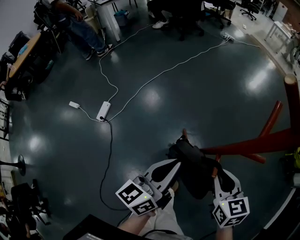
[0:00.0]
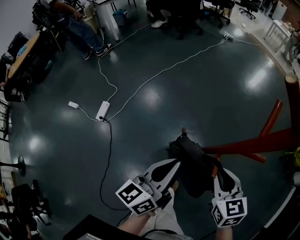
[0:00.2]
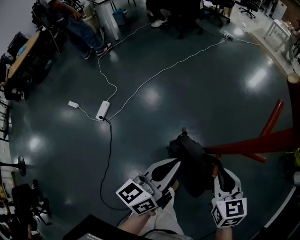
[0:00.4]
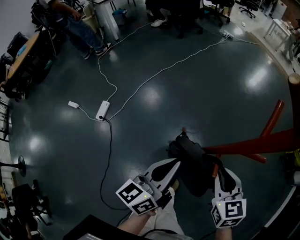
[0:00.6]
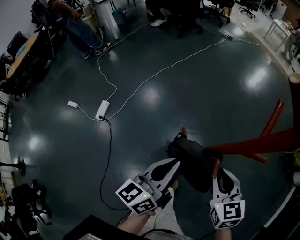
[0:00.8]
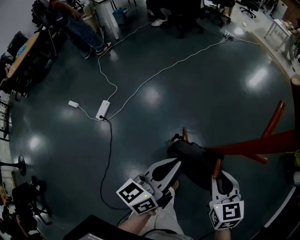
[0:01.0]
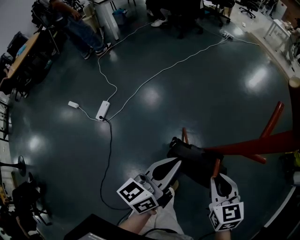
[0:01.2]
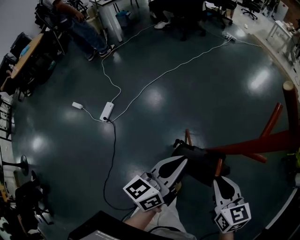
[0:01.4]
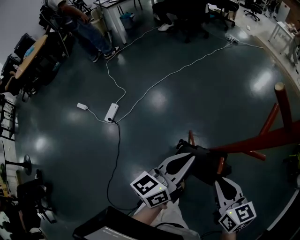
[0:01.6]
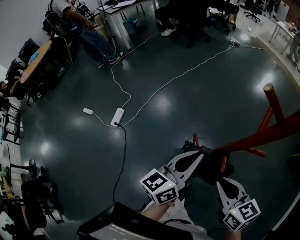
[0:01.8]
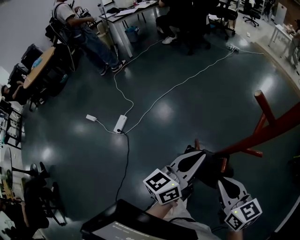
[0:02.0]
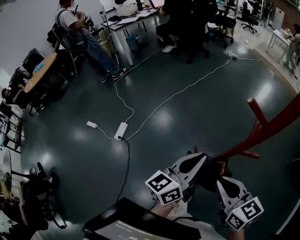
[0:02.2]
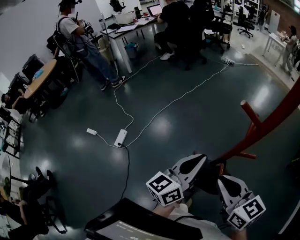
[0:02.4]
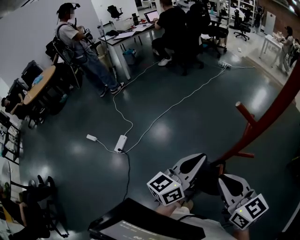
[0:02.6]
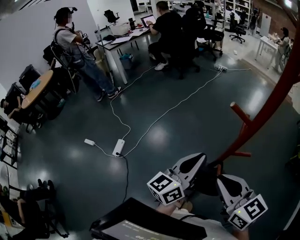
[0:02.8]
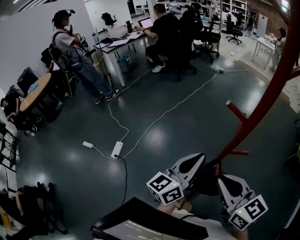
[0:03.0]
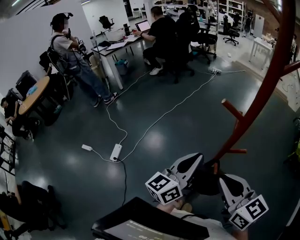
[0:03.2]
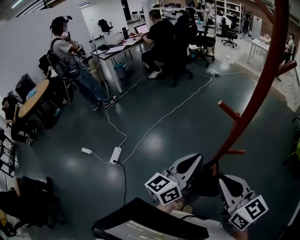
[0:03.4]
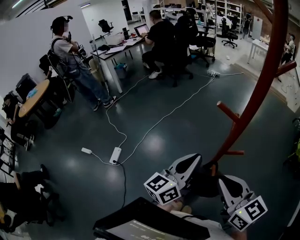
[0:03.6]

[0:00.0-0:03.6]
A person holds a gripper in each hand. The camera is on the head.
0:00.0 to 0:01.8: The grippers both shift upward by some 5 cm.
0:01.8 to 0:03.6: Both grippers move upward, some 15 cm. The right gripper changes its angle by some 20 degrees.

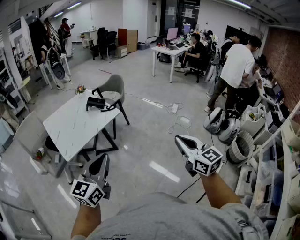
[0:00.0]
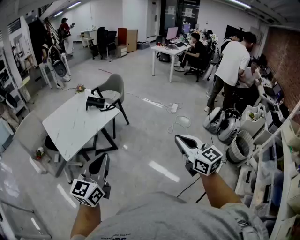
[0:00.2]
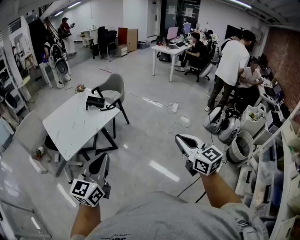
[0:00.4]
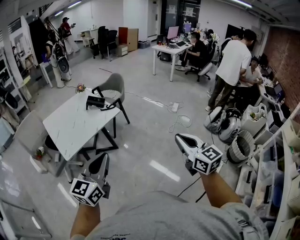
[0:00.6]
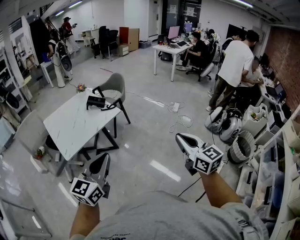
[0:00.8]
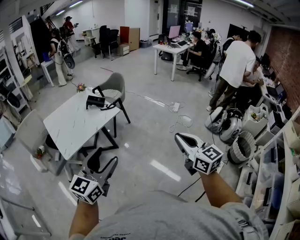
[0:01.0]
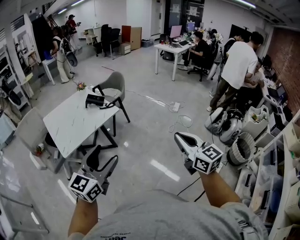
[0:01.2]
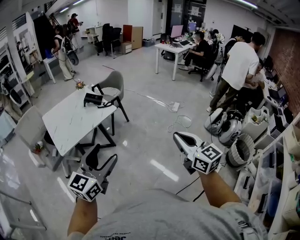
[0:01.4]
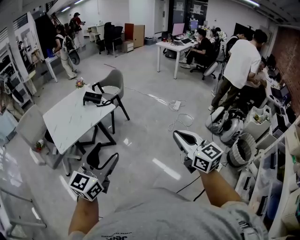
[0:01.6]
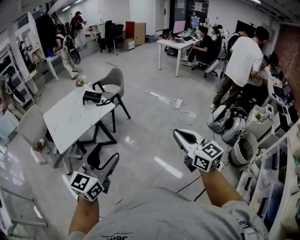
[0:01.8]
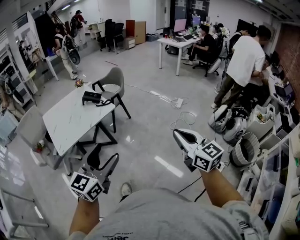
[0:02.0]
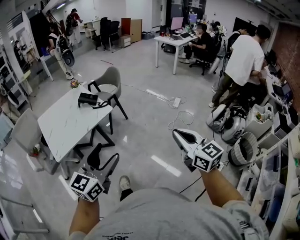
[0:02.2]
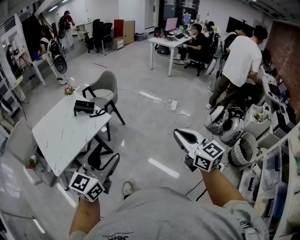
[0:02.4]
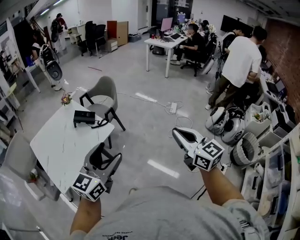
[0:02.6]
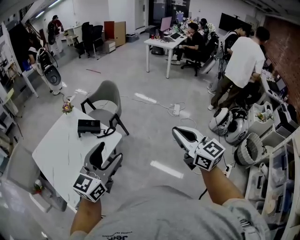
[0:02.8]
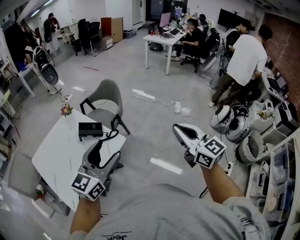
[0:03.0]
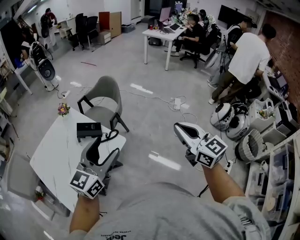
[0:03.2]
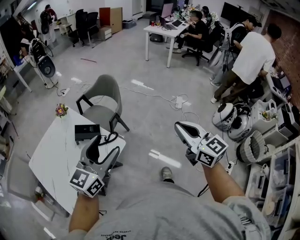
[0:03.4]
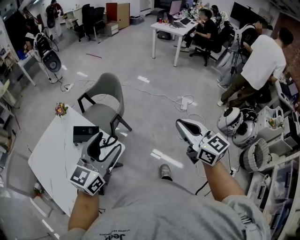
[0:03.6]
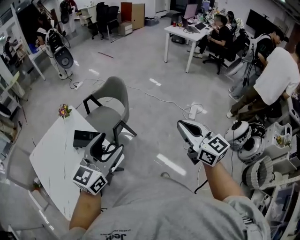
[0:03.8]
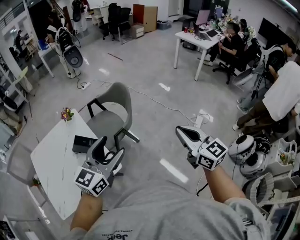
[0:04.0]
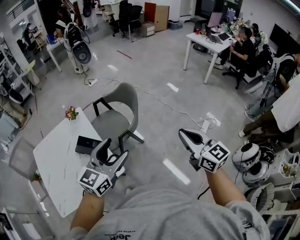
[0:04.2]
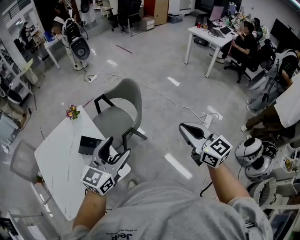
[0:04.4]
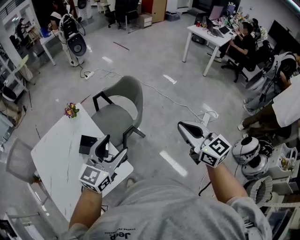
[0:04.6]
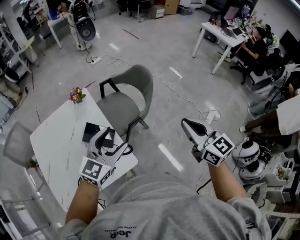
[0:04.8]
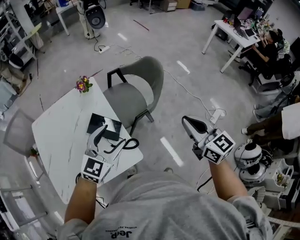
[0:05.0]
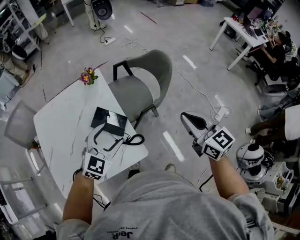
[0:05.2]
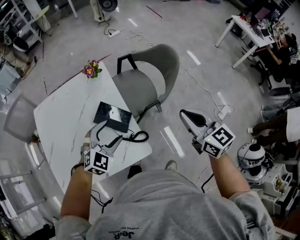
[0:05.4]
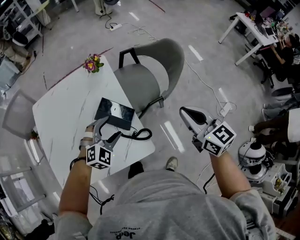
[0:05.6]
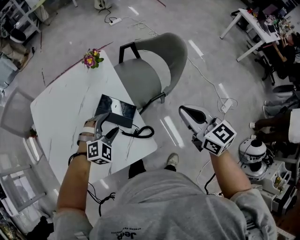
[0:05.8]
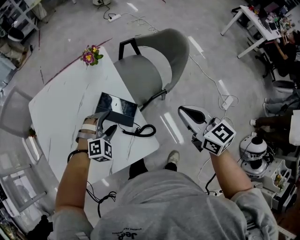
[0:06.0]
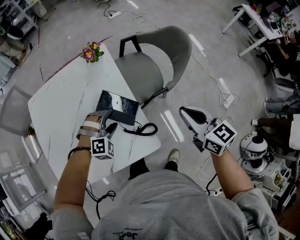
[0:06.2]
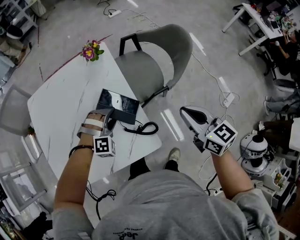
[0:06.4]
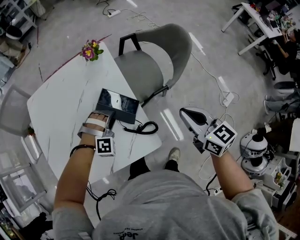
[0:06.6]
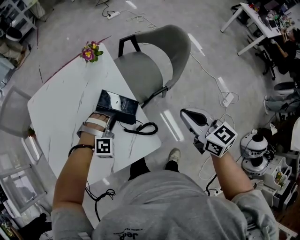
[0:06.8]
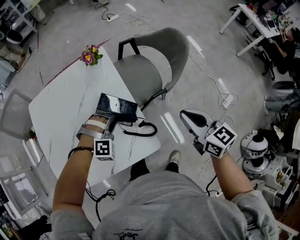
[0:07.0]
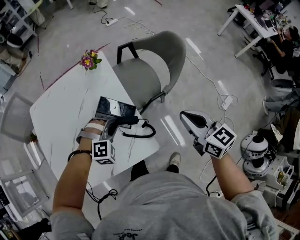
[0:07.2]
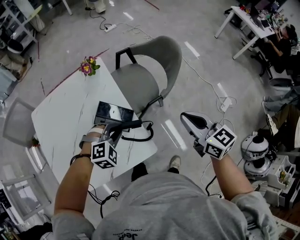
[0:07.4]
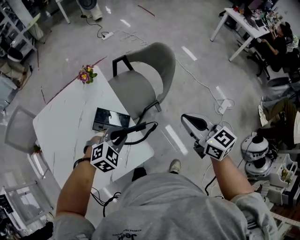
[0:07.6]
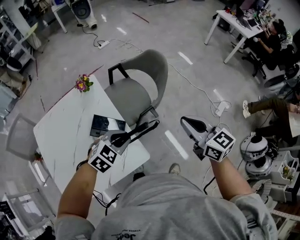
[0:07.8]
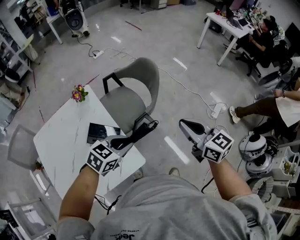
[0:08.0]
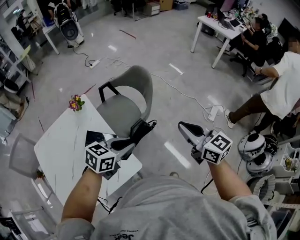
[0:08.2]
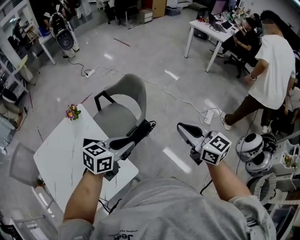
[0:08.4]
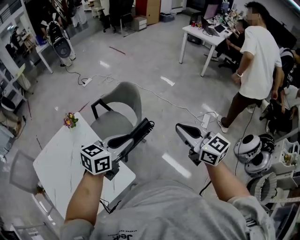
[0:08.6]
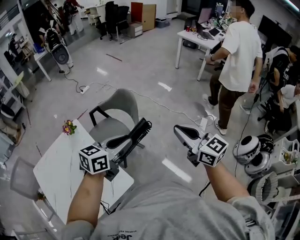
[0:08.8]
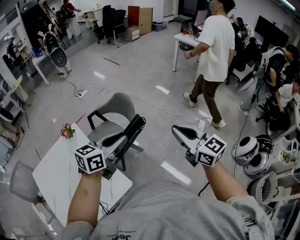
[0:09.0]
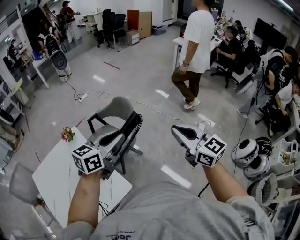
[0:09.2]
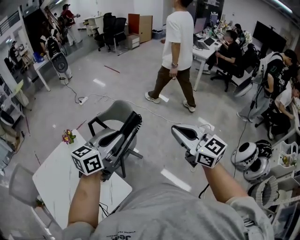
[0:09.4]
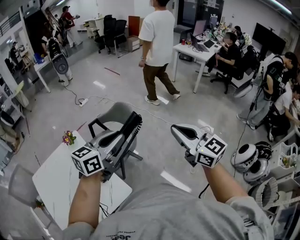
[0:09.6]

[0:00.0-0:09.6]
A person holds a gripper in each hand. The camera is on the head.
0:00.0 to 0:01.6: The two grippers go about 10 cm to the right. The left gripper opens its fingers.
0:01.6 to 0:03.2: Both grippers are carried forward and to the left, some 50 cm.
0:03.2 to 0:04.8: The left gripper goes about 30 cm forward and downward, and turns by roughly 20 degrees. The right gripper travels forward by roughly 35 cm, and swivels approximately 20 degrees.
0:04.8 to 0:06.4: The right gripper goes roughly 25 cm downward, to the left and forward, while the left gripper goes some 30 cm downward and to the left, and angles its fingers downward, by some 40 degrees.
0:06.4 to 0:08.0: The right gripper shifts by about 15 cm. Meanwhile the left gripper shifts by about 25 cm, rotates around the line of its fingers by approximately 60 degrees, counterclockwise from behind, and closes up.
0:08.0 to 0:09.6: The right gripper shifts some 20 cm upward and to the right. Meanwhile the left gripper heads upward, forward and to the right, covering about 25 cm, and points its fingers about 30 degrees further upward.

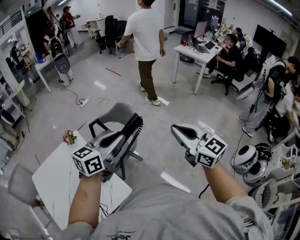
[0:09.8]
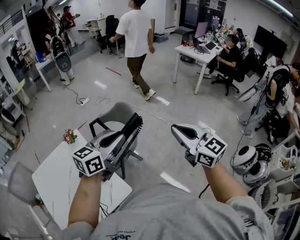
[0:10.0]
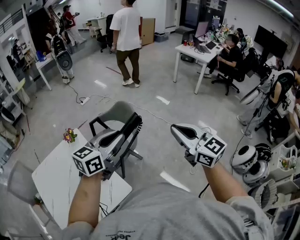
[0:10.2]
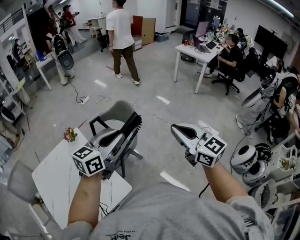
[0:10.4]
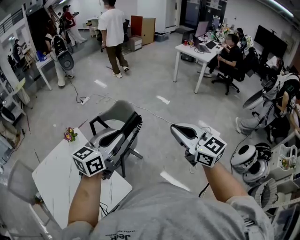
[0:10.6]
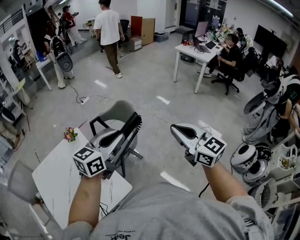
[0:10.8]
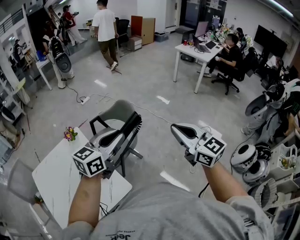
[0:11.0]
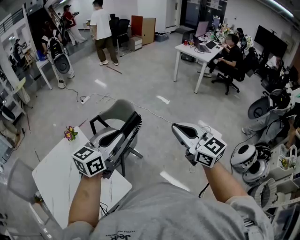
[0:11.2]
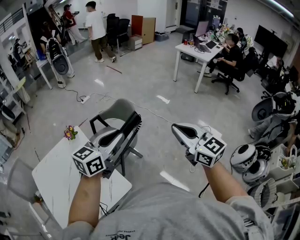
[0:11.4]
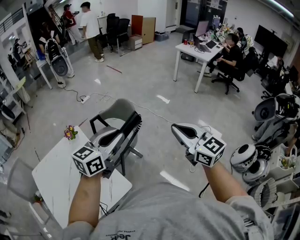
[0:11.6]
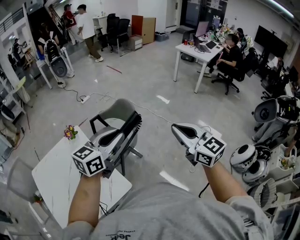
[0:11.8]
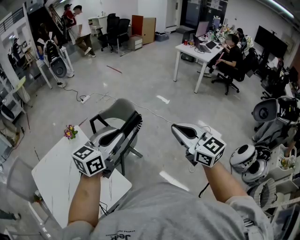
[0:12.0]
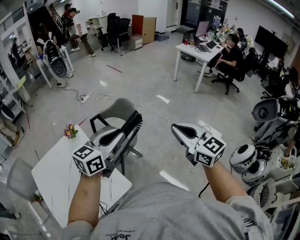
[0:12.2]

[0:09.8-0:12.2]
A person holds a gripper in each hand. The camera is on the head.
0:09.8 to 0:11.0: The grippers stay close to where they were, moving slightly.
0:11.0 to 0:12.2: Both grippers stay put.

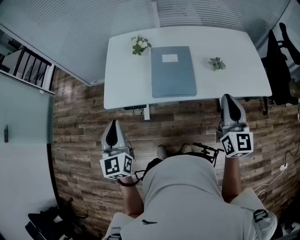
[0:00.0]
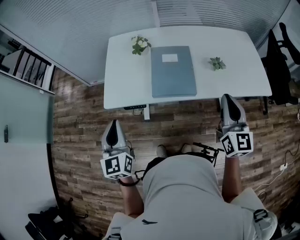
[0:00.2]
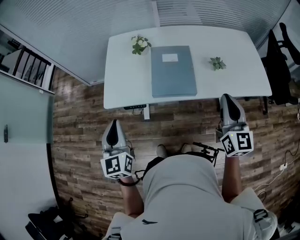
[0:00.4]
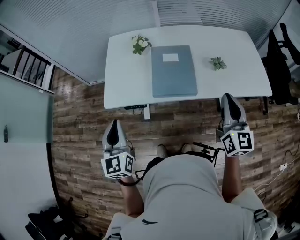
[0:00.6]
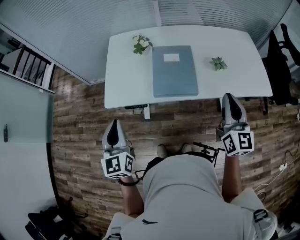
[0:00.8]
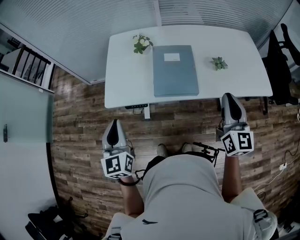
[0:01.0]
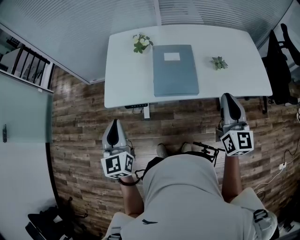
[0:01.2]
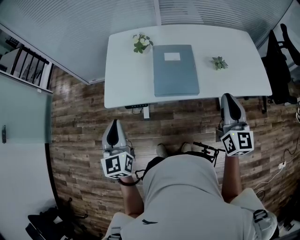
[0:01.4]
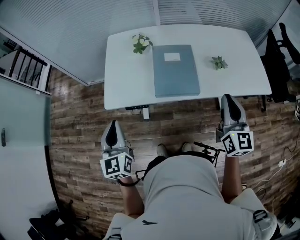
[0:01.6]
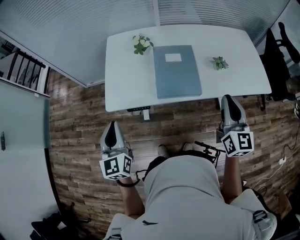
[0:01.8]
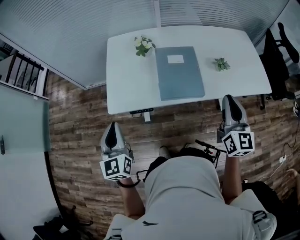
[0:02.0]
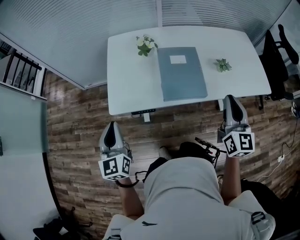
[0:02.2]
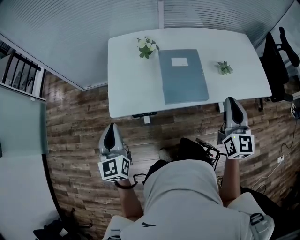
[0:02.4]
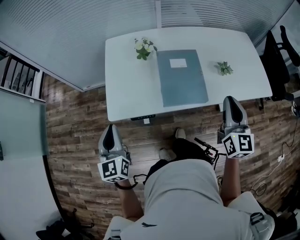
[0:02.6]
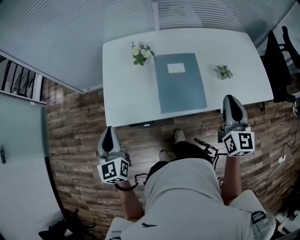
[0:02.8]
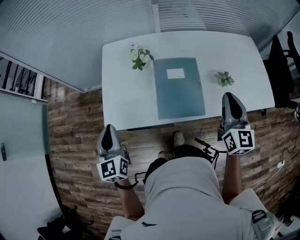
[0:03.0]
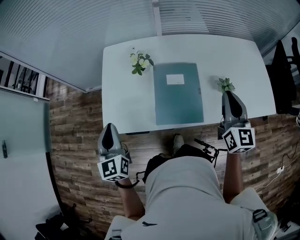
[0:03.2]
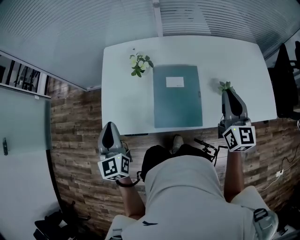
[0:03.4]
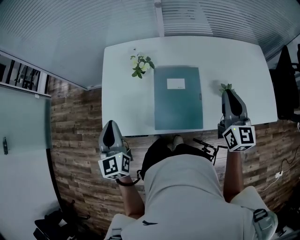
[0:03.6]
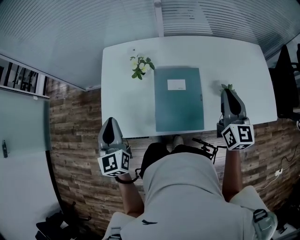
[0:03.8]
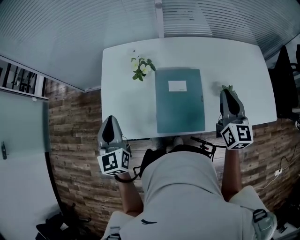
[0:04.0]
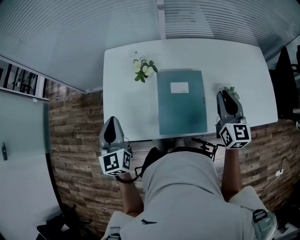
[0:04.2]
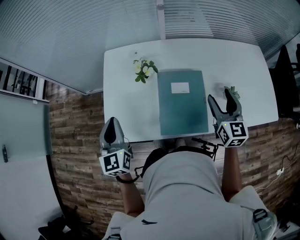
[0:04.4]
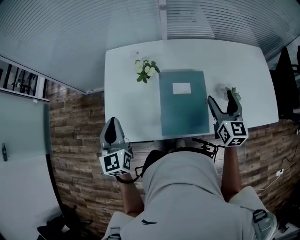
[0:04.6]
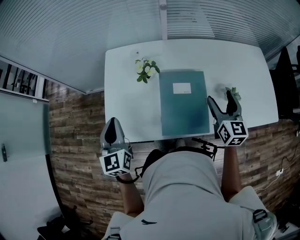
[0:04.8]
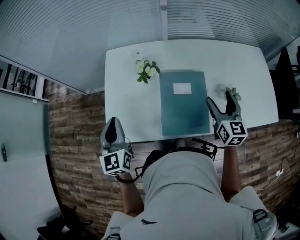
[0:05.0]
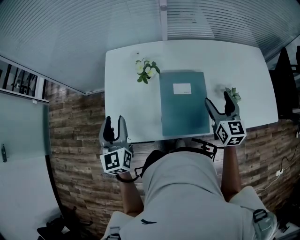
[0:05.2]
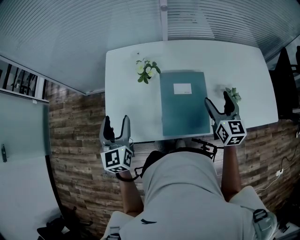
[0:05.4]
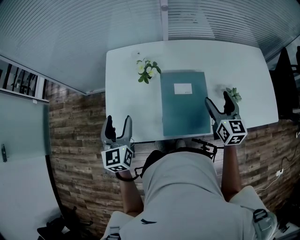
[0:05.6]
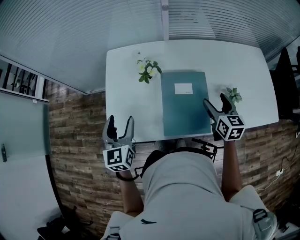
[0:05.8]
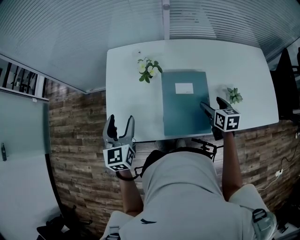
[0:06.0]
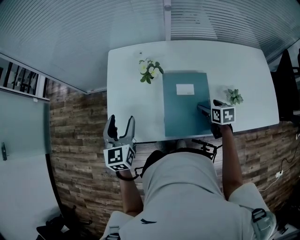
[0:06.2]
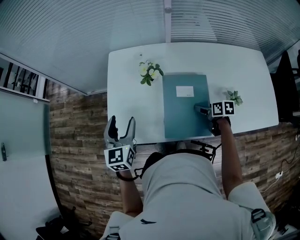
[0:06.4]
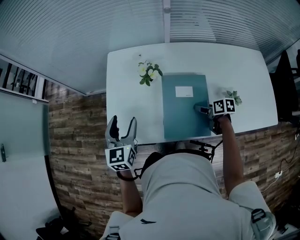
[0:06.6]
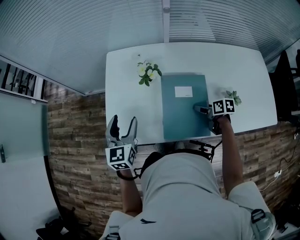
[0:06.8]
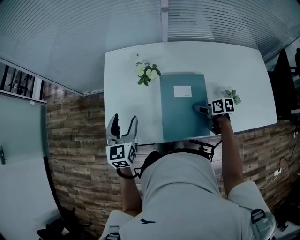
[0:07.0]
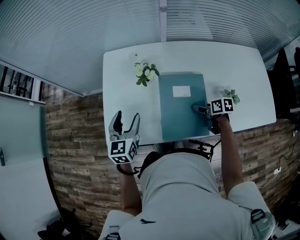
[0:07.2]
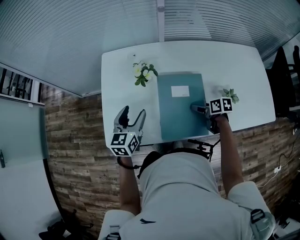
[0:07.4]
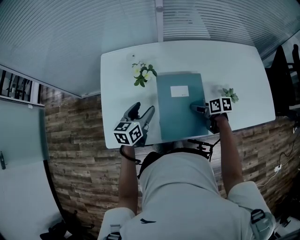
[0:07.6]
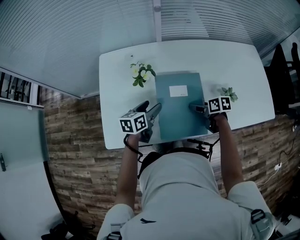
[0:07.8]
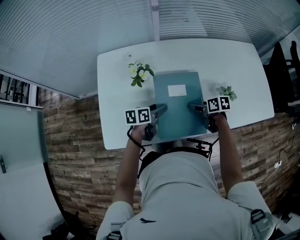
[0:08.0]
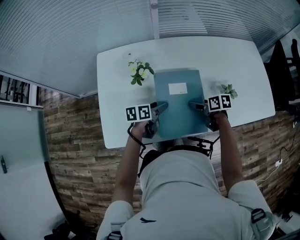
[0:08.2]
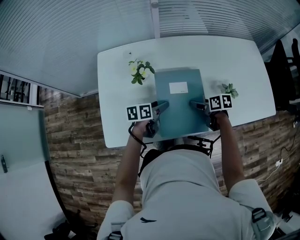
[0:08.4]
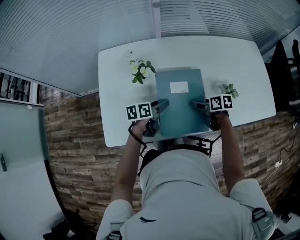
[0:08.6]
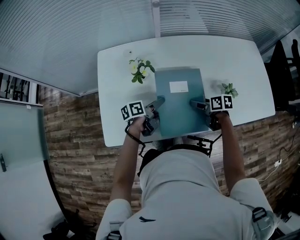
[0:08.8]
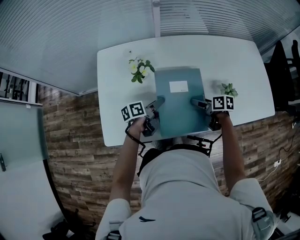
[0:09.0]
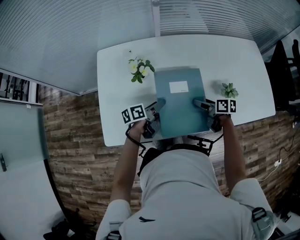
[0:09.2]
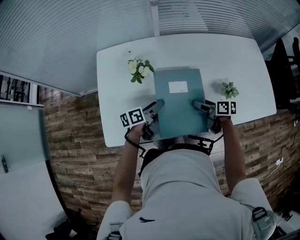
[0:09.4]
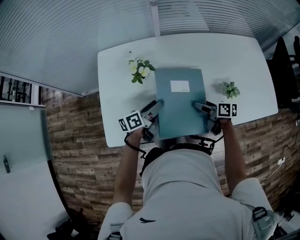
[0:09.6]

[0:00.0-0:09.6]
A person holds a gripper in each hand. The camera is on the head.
0:00.0 to 0:01.6: The grippers make only small movements.
0:01.6 to 0:03.2: The grippers both shift forward by some 15 cm.
0:03.2 to 0:04.8: The right gripper is displaced downward and forward by roughly 10 cm, and opens its fingers. Meanwhile the left gripper moves forward, approximately 10 cm.
0:04.8 to 0:06.4: The right gripper travels downward by roughly 20 cm, and tips its fingers downward by roughly 30 degrees; the left gripper opens its fingers.
0:06.4 to 0:08.0: The left gripper moves some 25 cm, and turns by about 60 degrees.
0:08.0 to 0:09.6: The right gripper changes its angle by about 20 degrees; the left gripper rotates some 20 degrees.
